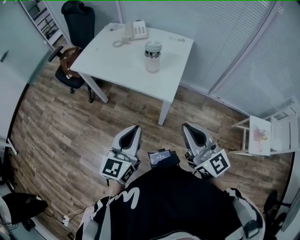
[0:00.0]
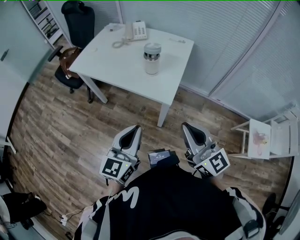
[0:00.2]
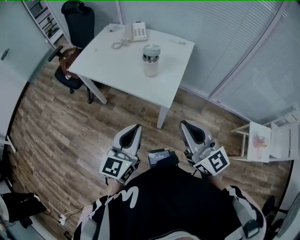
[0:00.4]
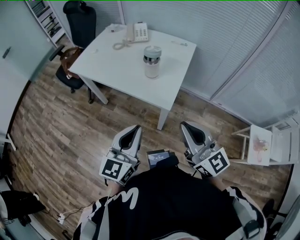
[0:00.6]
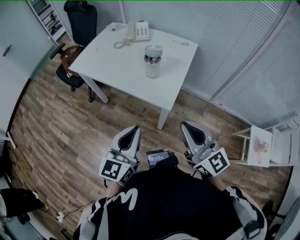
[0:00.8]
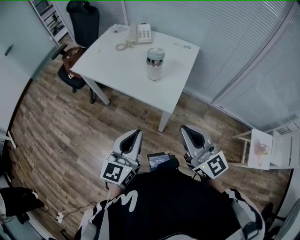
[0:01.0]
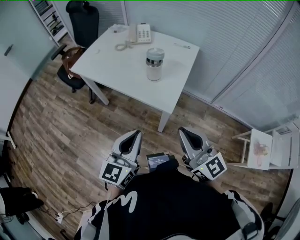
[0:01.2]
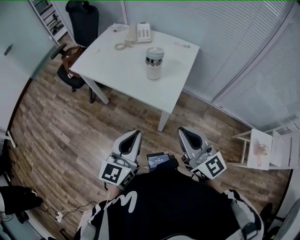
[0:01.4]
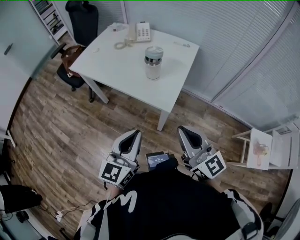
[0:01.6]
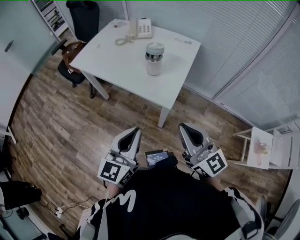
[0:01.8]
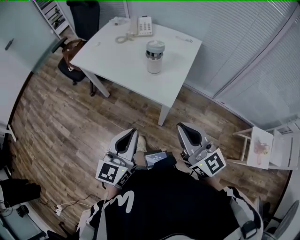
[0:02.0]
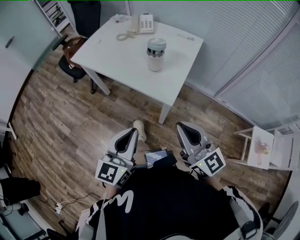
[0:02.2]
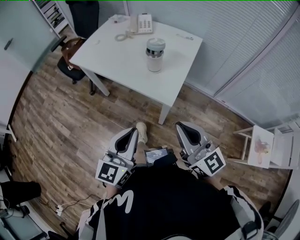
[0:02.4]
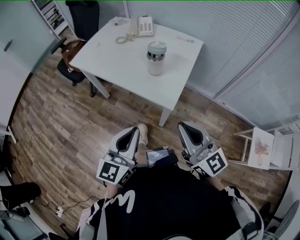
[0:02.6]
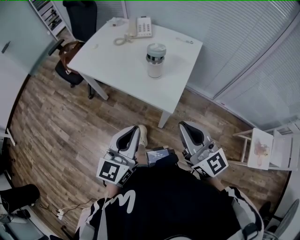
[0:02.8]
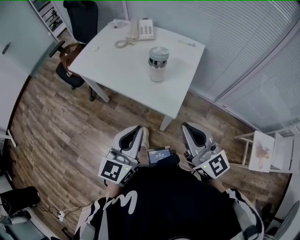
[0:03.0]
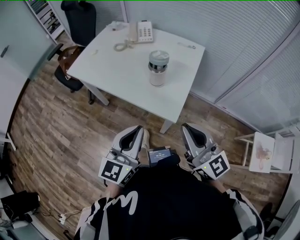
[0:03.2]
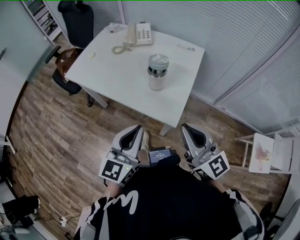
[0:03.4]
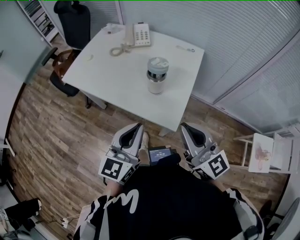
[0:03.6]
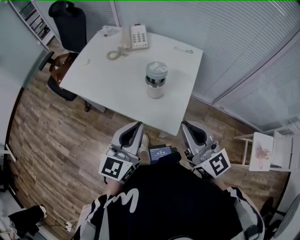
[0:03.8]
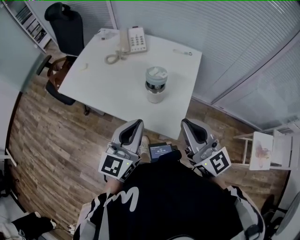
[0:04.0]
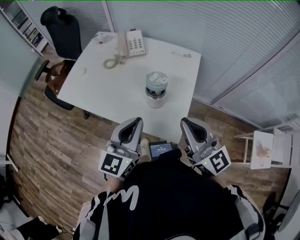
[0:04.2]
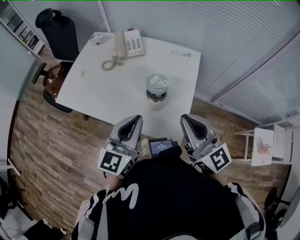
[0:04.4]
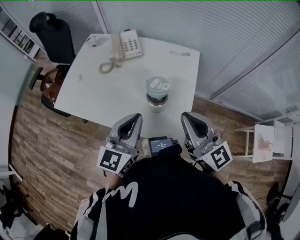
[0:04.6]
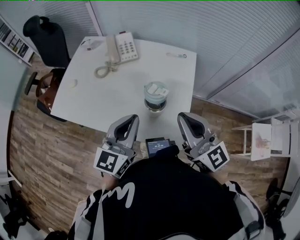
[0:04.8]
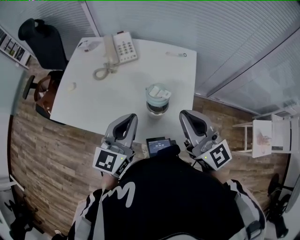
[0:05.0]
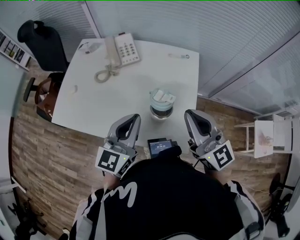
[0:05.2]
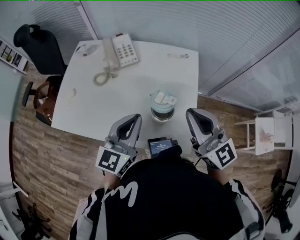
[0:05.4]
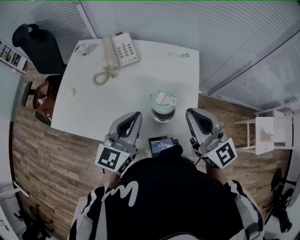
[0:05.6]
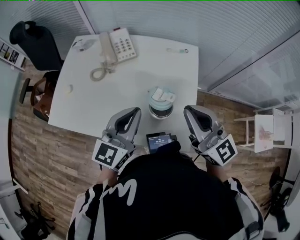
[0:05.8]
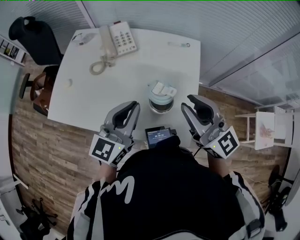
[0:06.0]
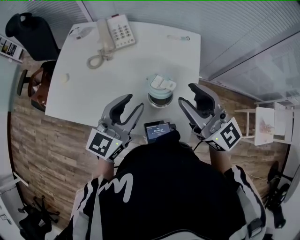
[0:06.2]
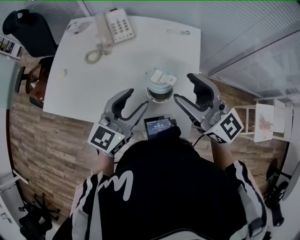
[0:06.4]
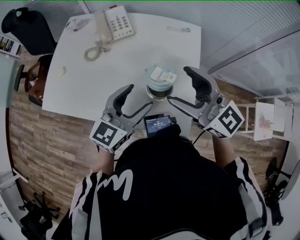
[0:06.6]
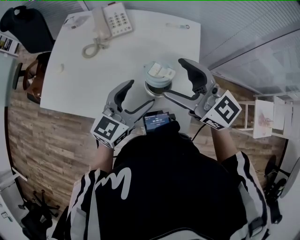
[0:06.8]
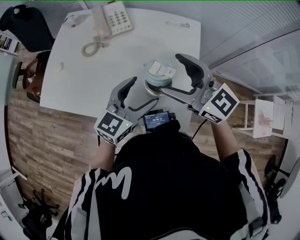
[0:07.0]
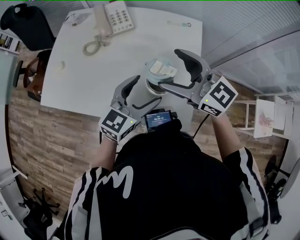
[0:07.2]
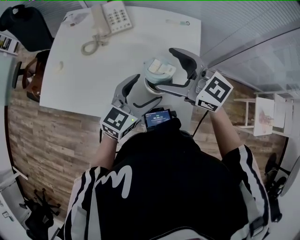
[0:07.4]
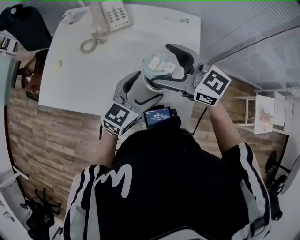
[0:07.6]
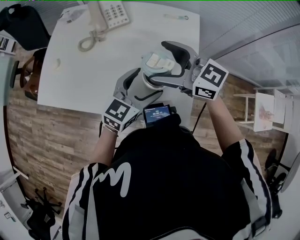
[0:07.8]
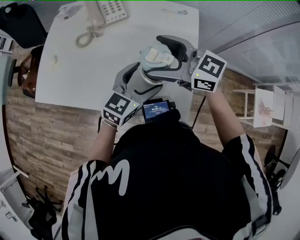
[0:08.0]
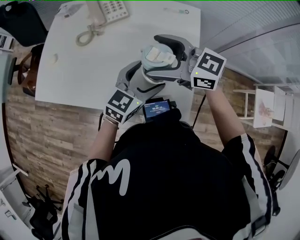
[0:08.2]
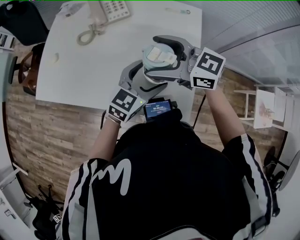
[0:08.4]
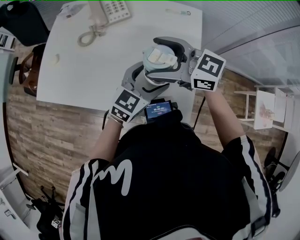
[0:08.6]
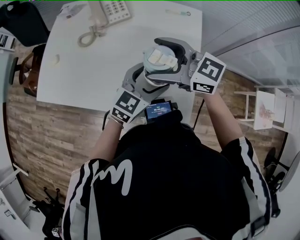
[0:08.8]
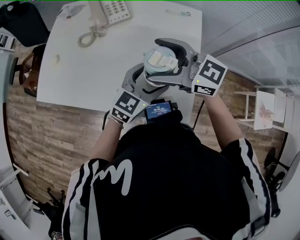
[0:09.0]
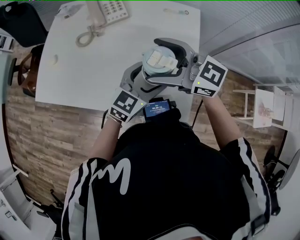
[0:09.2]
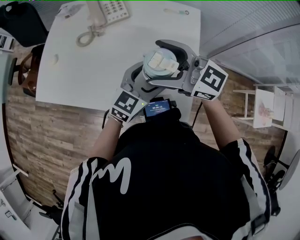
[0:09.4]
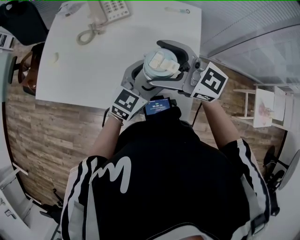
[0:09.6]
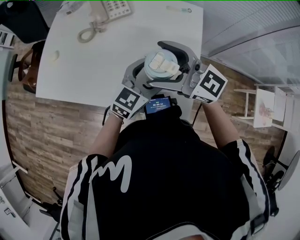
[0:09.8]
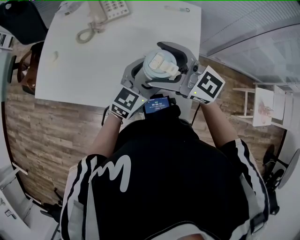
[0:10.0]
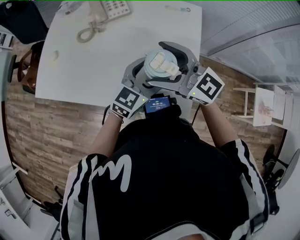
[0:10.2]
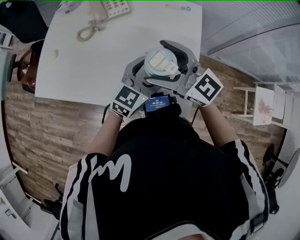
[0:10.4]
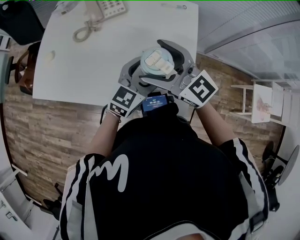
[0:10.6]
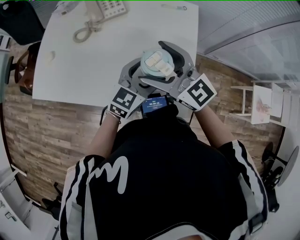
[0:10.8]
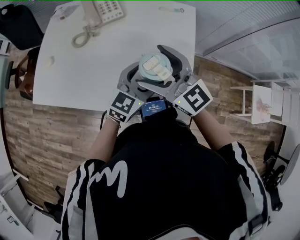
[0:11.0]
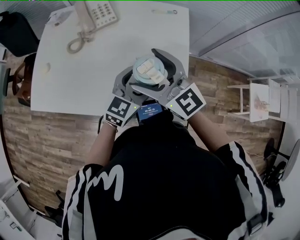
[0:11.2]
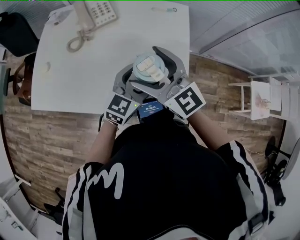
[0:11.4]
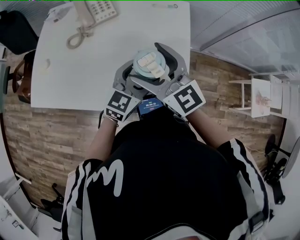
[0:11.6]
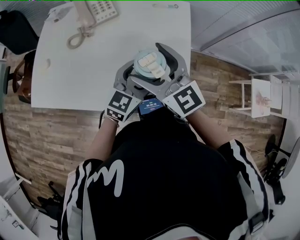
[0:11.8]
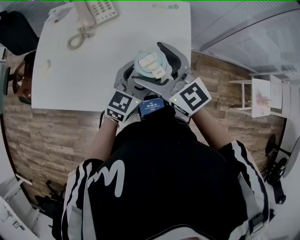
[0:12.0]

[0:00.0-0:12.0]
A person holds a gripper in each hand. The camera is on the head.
0:00.0 to 0:01.6: The right gripper goes about 5 cm forward. The left gripper shifts by approximately 5 cm.
0:01.6 to 0:03.0: The grippers both shift forward by about 5 cm.
0:03.0 to 0:04.4: The grippers both shift forward by roughly 20 cm.
0:04.4 to 0:06.0: The grippers both shift forward by some 10 cm.
0:06.0 to 0:07.6: The right gripper heads downward, forward and to the left, covering roughly 10 cm, swivels roughly 20 degrees, and opens up; the left gripper travels downward and to the right by approximately 10 cm, and opens.
0:07.6 to 0:10.4: The grippers make only small movements.

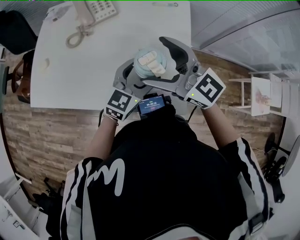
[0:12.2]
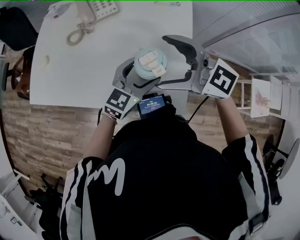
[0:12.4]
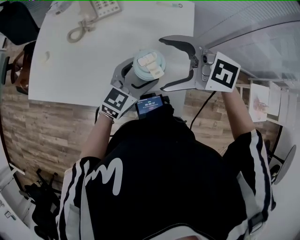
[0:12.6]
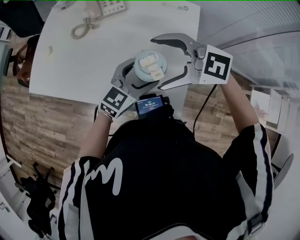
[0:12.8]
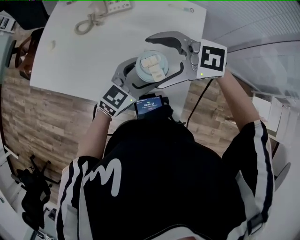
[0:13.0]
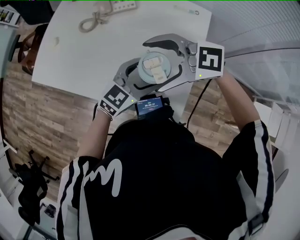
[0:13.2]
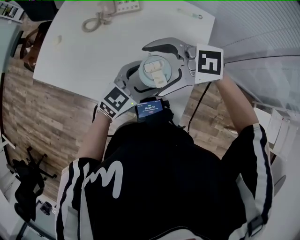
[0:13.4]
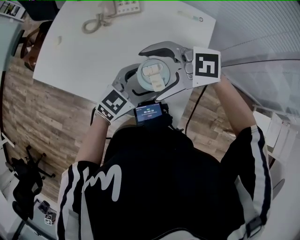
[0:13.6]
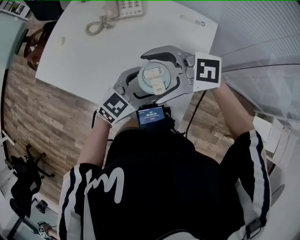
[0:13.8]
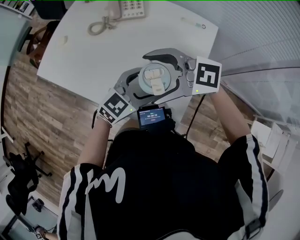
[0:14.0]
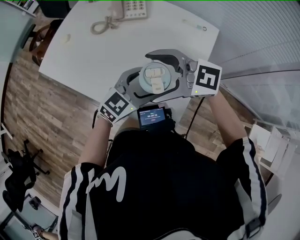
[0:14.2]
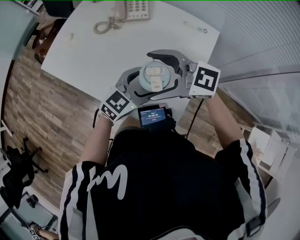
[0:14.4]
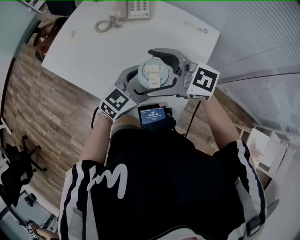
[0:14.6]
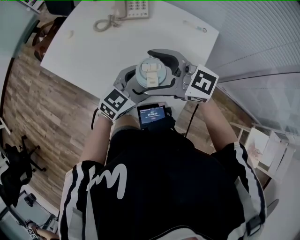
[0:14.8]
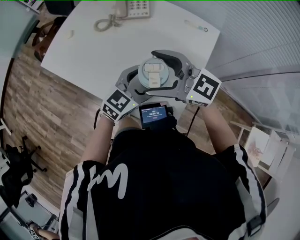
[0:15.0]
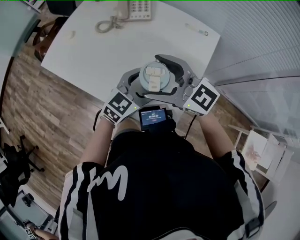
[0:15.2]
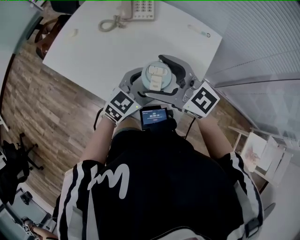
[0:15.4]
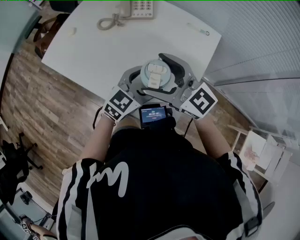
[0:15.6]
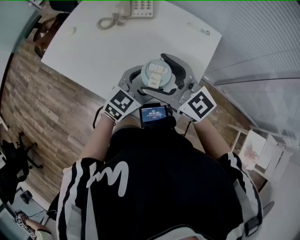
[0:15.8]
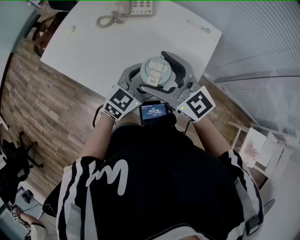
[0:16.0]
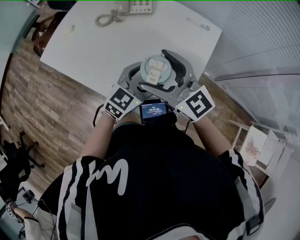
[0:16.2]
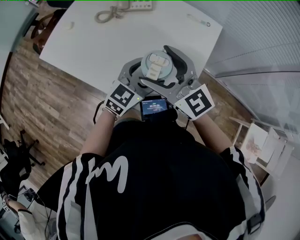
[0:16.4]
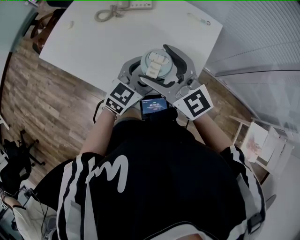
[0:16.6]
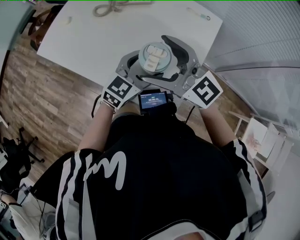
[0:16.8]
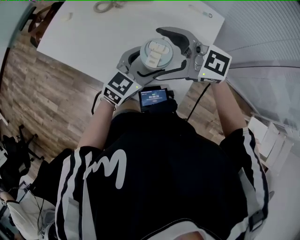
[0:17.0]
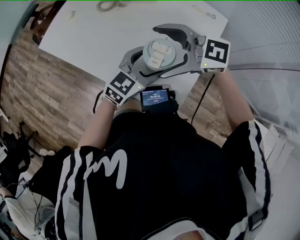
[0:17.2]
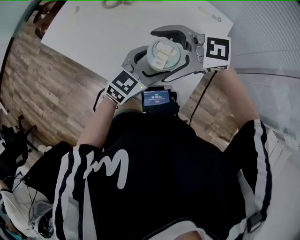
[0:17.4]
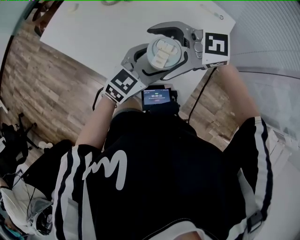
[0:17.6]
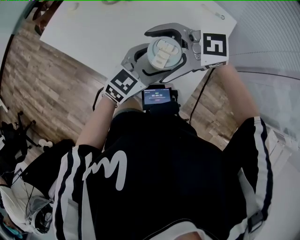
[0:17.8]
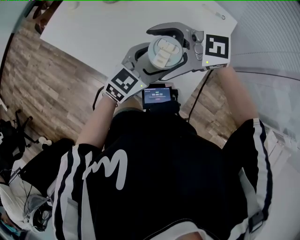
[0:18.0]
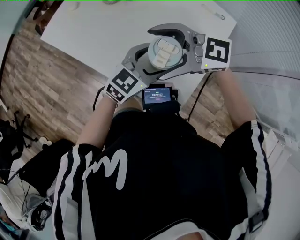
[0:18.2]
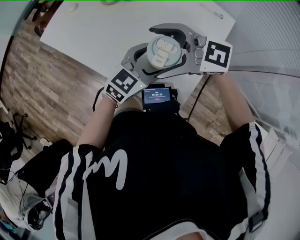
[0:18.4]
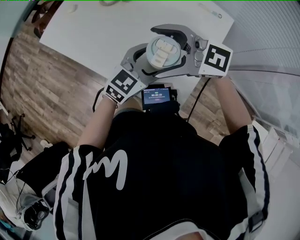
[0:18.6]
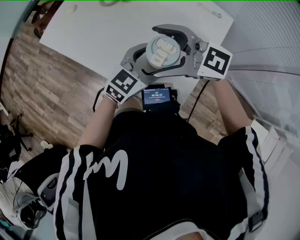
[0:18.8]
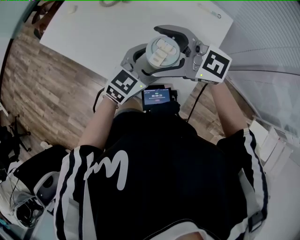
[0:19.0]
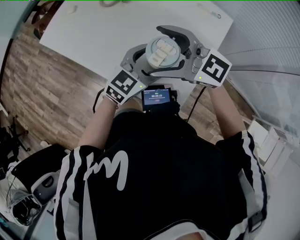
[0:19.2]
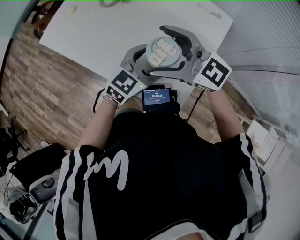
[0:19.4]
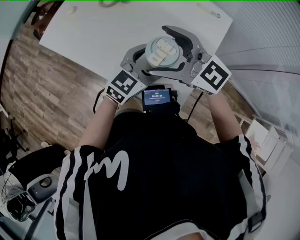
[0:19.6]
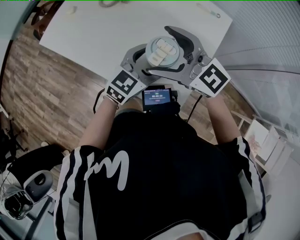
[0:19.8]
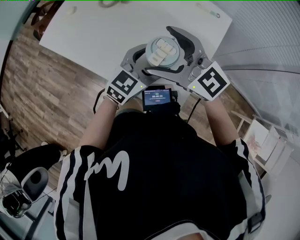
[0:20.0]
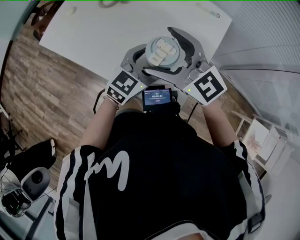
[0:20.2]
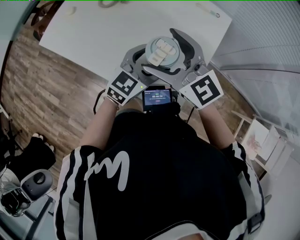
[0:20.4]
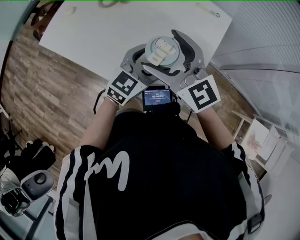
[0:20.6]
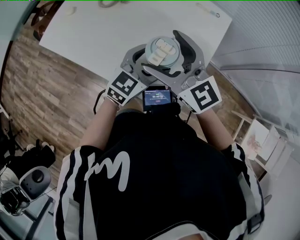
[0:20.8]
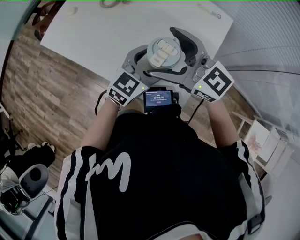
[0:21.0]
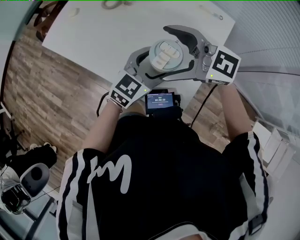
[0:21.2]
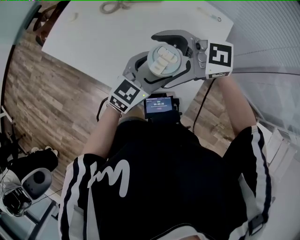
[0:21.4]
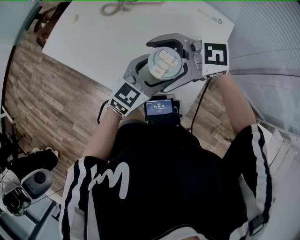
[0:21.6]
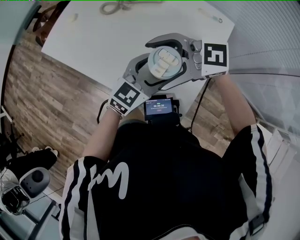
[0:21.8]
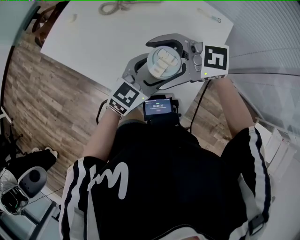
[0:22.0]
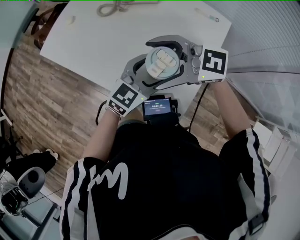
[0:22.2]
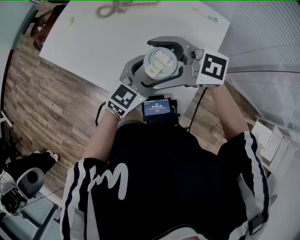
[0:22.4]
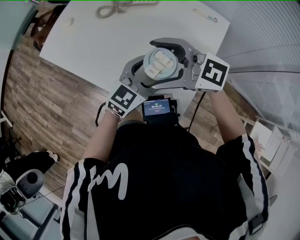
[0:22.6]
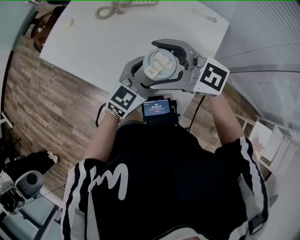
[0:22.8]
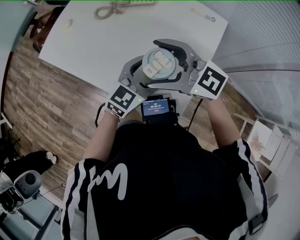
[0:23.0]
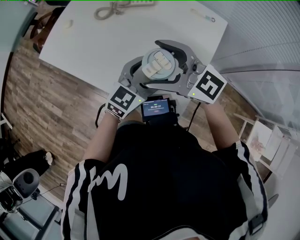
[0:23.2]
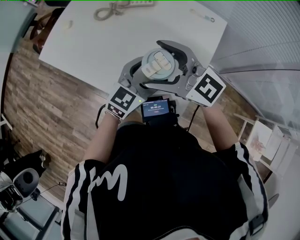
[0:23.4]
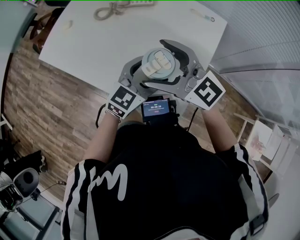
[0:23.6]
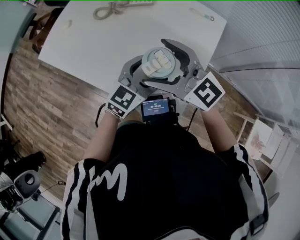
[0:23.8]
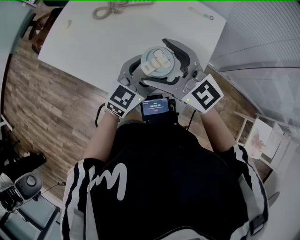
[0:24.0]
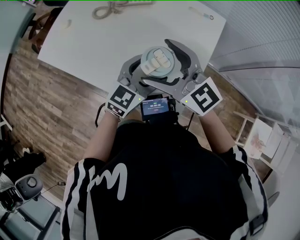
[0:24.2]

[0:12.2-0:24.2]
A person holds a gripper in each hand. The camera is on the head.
0:12.2 to 0:13.8: The right gripper changes its angle by roughly 60 degrees.
0:13.8 to 0:15.2: The right gripper turns by approximately 30 degrees.
0:15.2 to 0:16.6: The right gripper turns by about 20 degrees.
0:16.6 to 0:18.2: The right gripper rotates roughly 50 degrees.
0:18.2 to 0:19.8: The right gripper rotates approximately 30 degrees.
0:19.8 to 0:21.2: There are only small adjustments of the grippers.
0:22.6 to 0:24.2: The right gripper changes its angle by approximately 30 degrees.
